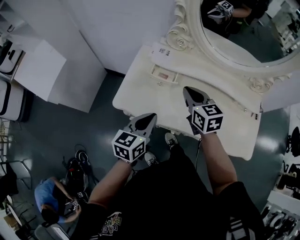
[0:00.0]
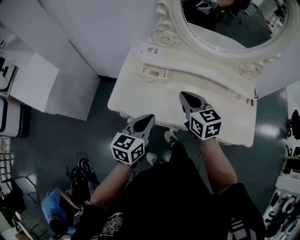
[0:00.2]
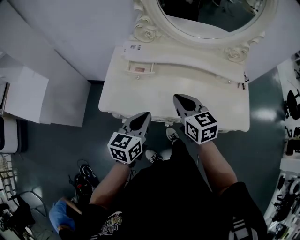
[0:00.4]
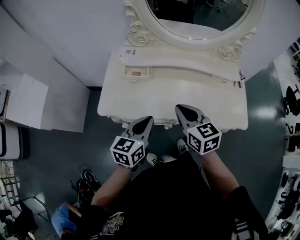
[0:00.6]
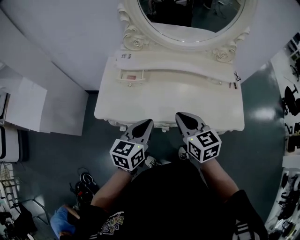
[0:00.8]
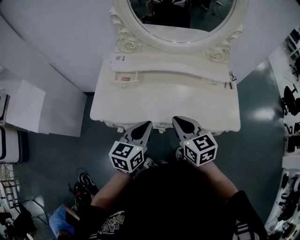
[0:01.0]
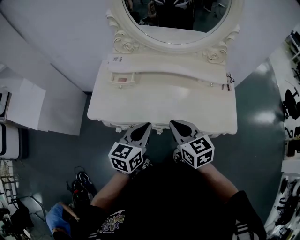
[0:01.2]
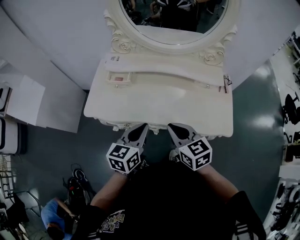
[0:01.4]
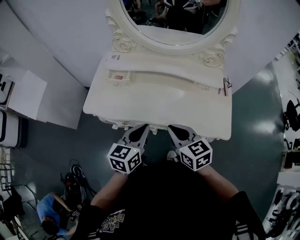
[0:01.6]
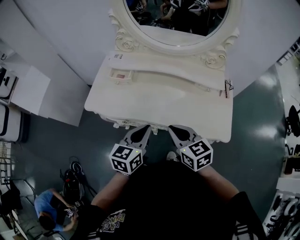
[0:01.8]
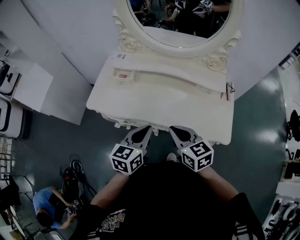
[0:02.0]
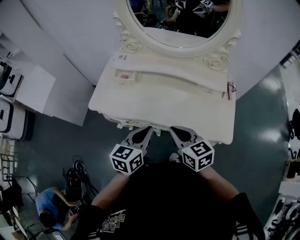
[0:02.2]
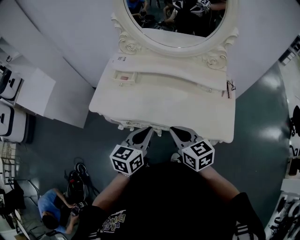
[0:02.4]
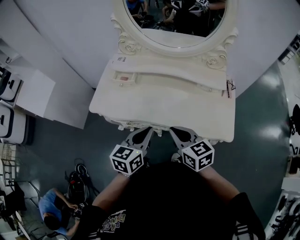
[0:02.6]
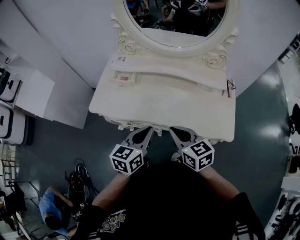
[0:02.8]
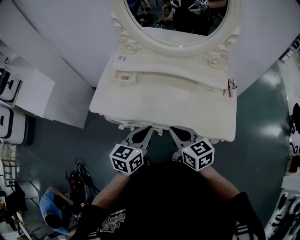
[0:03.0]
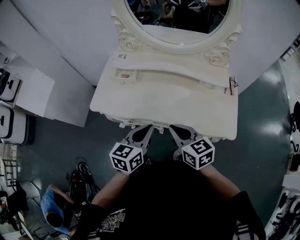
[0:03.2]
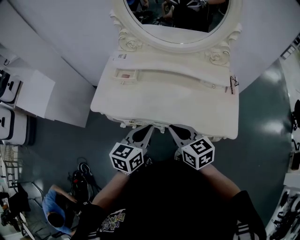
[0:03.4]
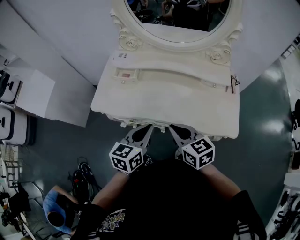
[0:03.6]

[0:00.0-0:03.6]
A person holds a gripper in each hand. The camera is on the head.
0.0 to 1.8 s: The left gripper is displaced to the right and backward by some 25 cm, while the right gripper moves backward and to the right, roughly 30 cm.
1.8 to 3.6 s: The grippers stay close to where they were, moving slightly.

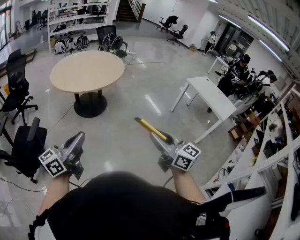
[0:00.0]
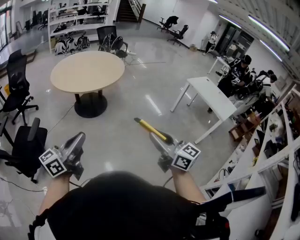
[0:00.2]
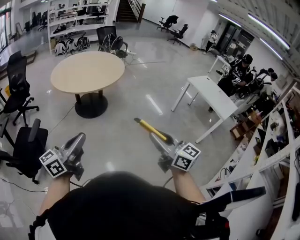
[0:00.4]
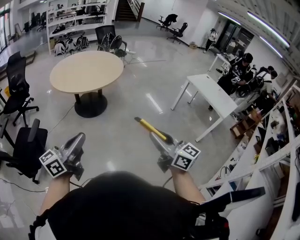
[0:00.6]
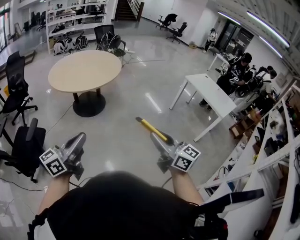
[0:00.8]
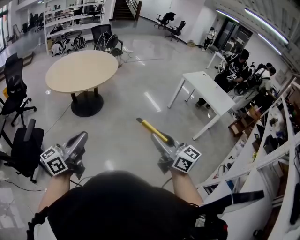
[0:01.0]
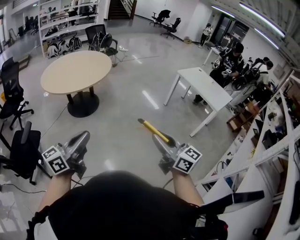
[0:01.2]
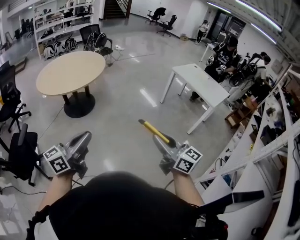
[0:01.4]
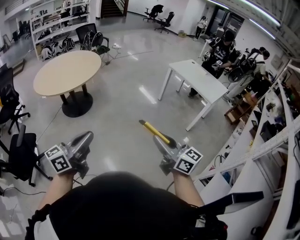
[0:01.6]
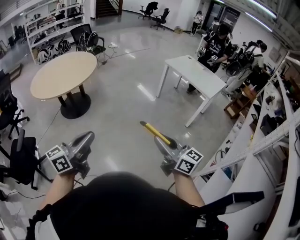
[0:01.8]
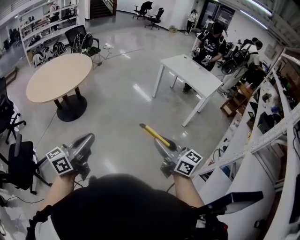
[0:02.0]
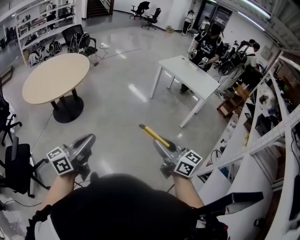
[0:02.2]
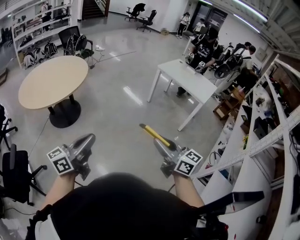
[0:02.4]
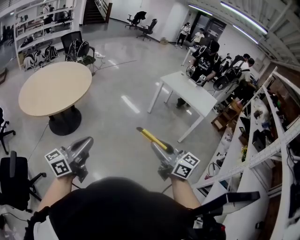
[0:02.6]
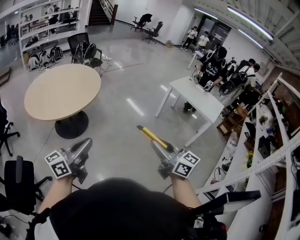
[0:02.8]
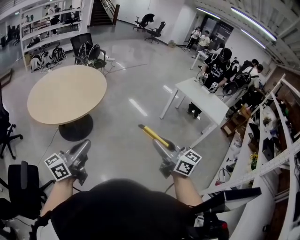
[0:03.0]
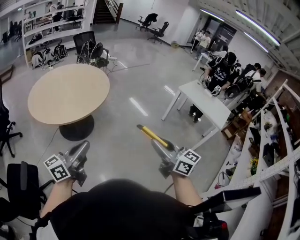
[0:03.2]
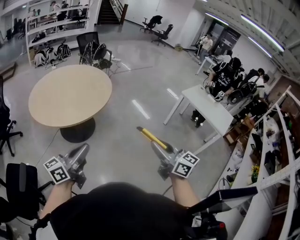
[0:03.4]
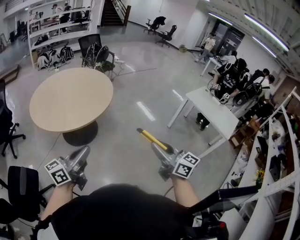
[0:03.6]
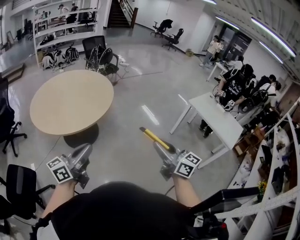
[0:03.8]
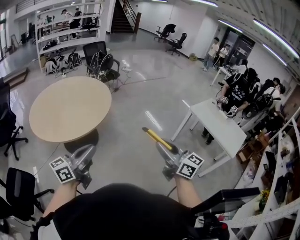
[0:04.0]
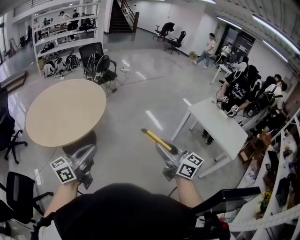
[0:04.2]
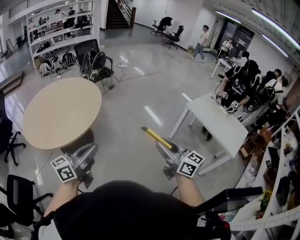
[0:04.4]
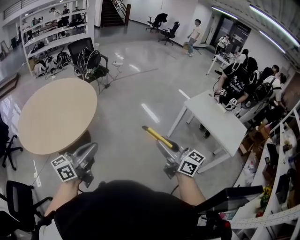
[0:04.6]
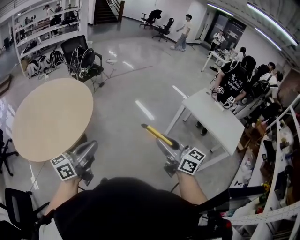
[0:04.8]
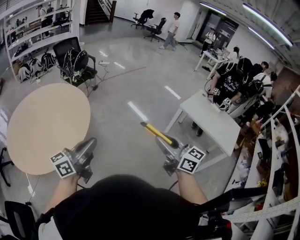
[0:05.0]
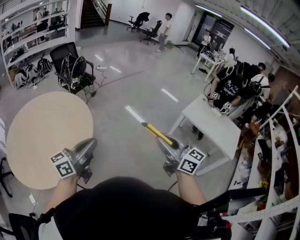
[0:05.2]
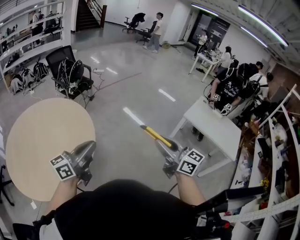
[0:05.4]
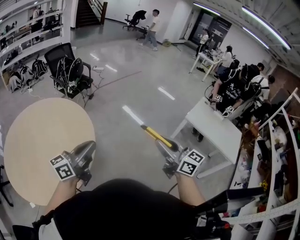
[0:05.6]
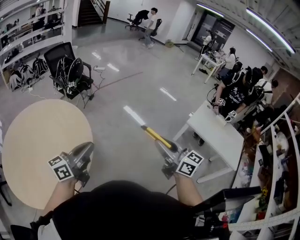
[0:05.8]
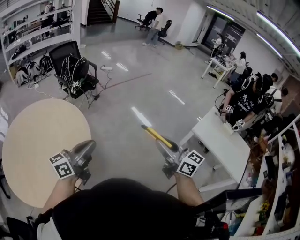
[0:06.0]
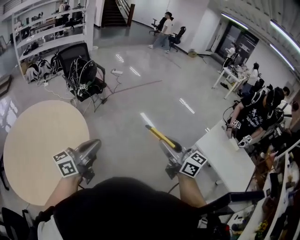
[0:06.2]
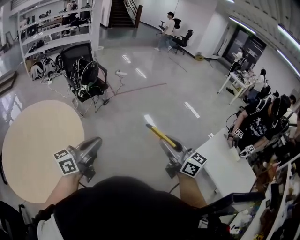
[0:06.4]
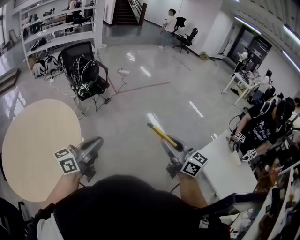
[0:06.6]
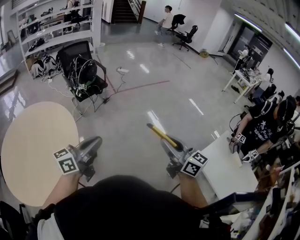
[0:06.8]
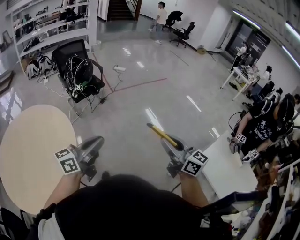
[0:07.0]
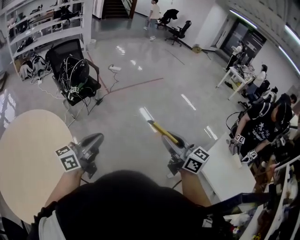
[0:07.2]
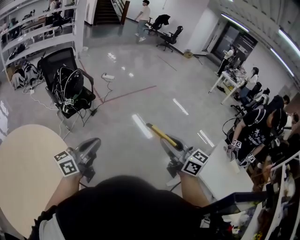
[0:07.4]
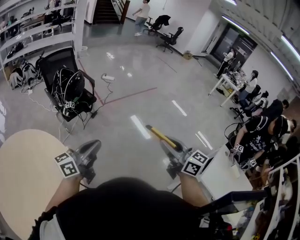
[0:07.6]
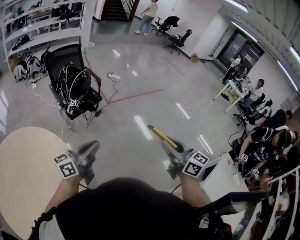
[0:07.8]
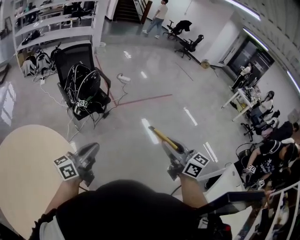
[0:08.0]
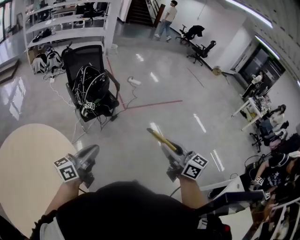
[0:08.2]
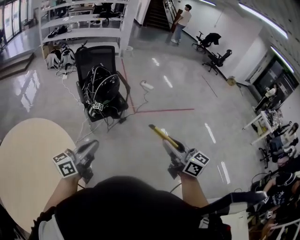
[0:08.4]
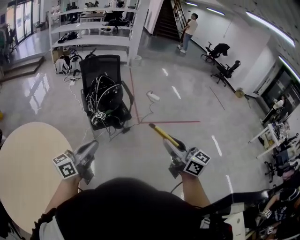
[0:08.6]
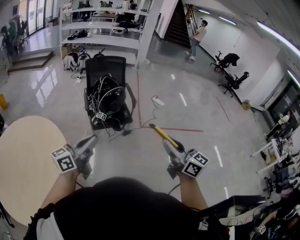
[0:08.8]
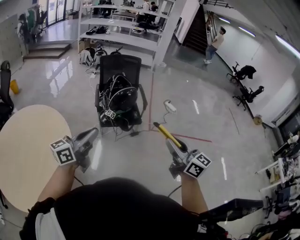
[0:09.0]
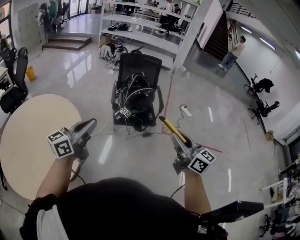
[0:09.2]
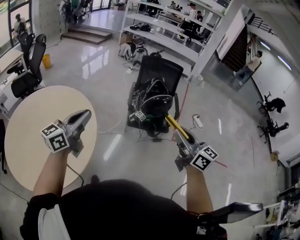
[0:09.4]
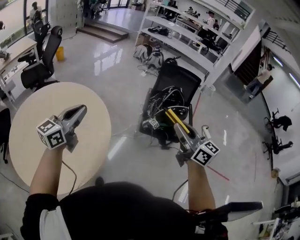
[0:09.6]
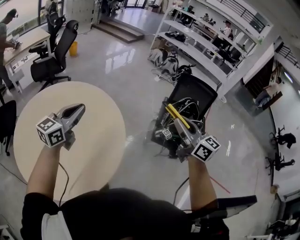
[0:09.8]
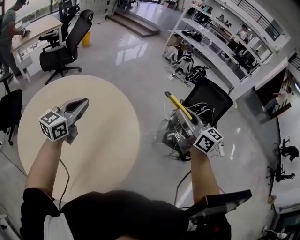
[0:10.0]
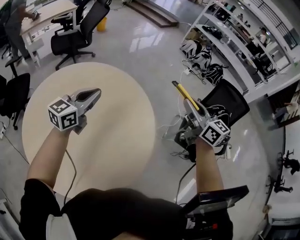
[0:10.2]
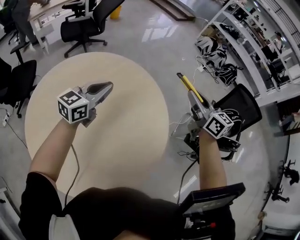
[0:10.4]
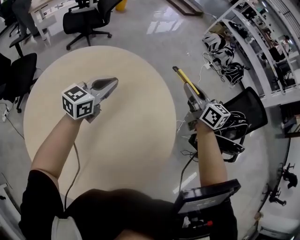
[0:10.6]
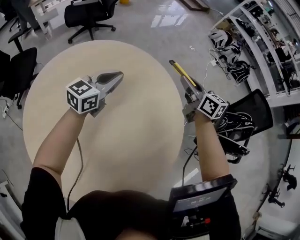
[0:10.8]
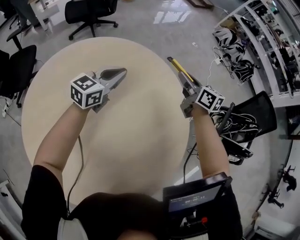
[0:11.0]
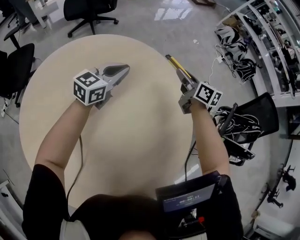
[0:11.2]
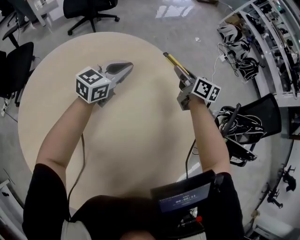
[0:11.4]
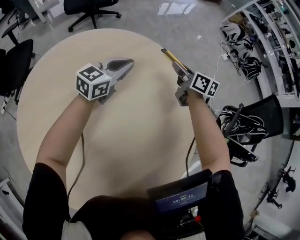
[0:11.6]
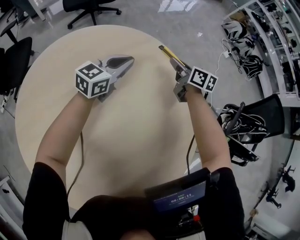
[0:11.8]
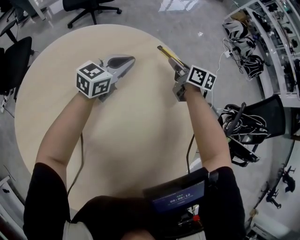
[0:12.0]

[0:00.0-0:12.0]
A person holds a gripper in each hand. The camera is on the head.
0.0 to 1.6 s: The grippers both shift to the right by some 25 cm.
1.6 to 3.0 s: Both grippers move to the left and forward, some 35 cm.
3.0 to 4.4 s: The two grippers go approximately 35 cm forward and to the right.
4.4 to 6.0 s: The pair of grippers is taken forward, roughly 40 cm.
6.0 to 7.6 s: The two grippers travel together, forward, roughly 40 cm.
7.6 to 9.0 s: The right gripper changes place by some 40 cm, and turns by some 40 degrees; the left gripper ends up some 20 cm from where it was, and swivels approximately 40 degrees.
9.0 to 10.4 s: The two grippers travel together, approximately 70 cm. The right gripper rotates about 40 degrees. The left gripper turns by roughly 50 degrees.
10.4 to 12.0 s: The left gripper moves downward and forward, approximately 30 cm, while the right gripper goes some 50 cm downward, forward and to the left, and rotates roughly 30 degrees.

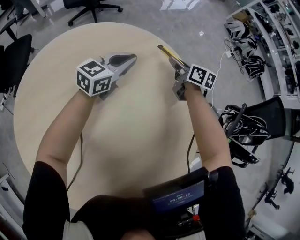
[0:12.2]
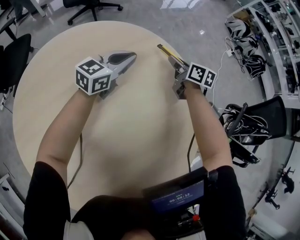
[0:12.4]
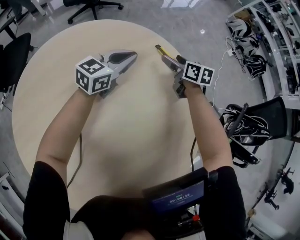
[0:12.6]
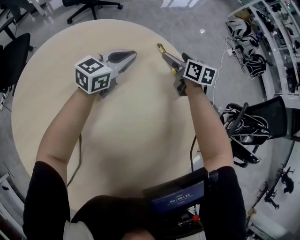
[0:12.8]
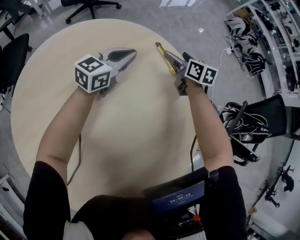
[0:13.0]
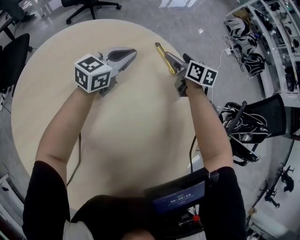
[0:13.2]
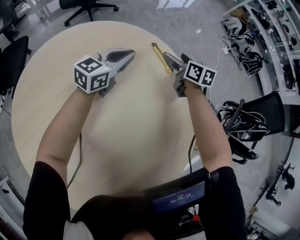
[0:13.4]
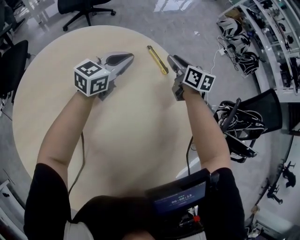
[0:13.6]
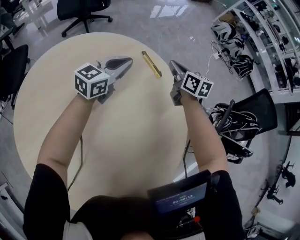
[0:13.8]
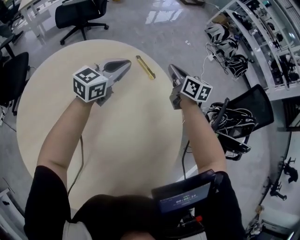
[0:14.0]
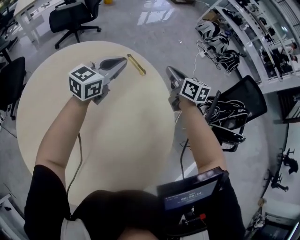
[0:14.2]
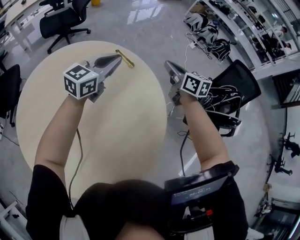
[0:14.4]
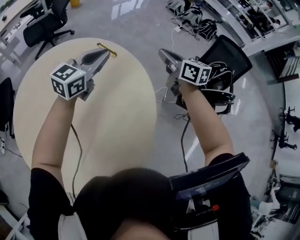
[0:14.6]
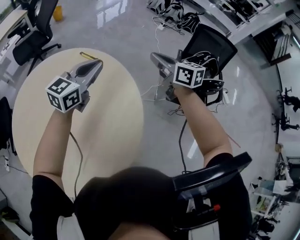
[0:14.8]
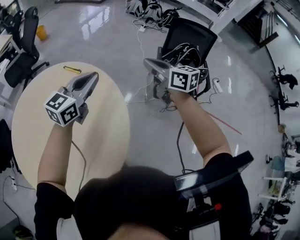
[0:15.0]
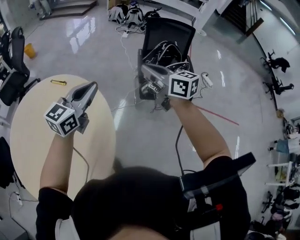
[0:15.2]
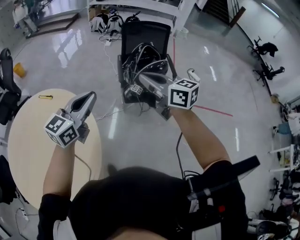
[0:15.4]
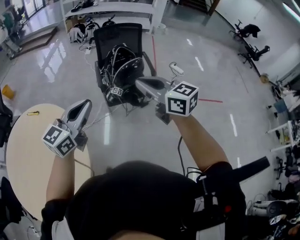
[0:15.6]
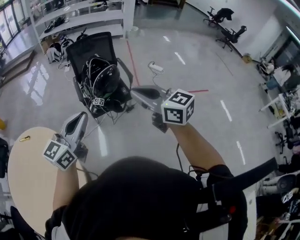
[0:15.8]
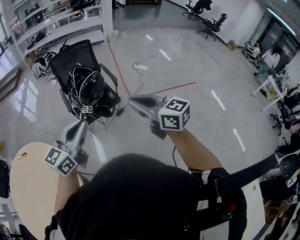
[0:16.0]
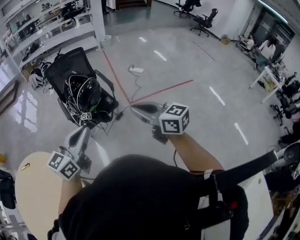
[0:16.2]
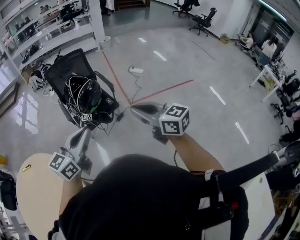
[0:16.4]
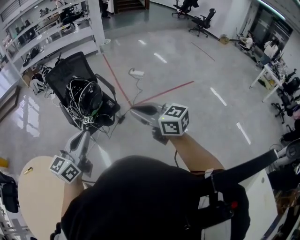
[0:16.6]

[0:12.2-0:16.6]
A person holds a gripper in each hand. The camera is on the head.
12.2 to 13.6 s: The right gripper moves about 5 cm, and opens, then closes once more.
13.6 to 15.2 s: The two grippers travel together, to the right and backward, roughly 50 cm. The two grippers go about 30 cm upward. The left gripper rotates approximately 30 degrees. The right gripper swivels roughly 20 degrees.
15.2 to 16.6 s: The left gripper moves about 40 cm, and turns by roughly 30 degrees. The right gripper shifts by some 50 cm, and swivels approximately 30 degrees.

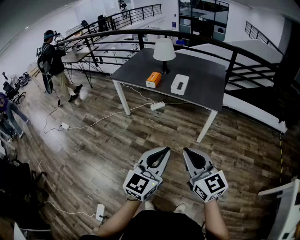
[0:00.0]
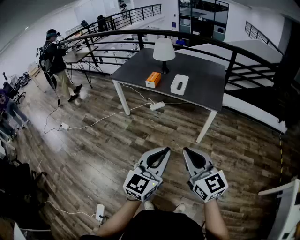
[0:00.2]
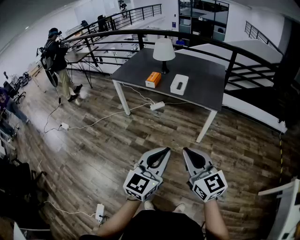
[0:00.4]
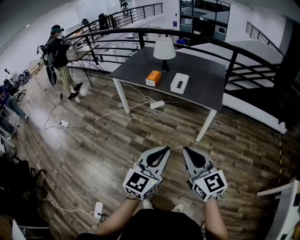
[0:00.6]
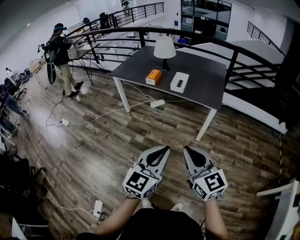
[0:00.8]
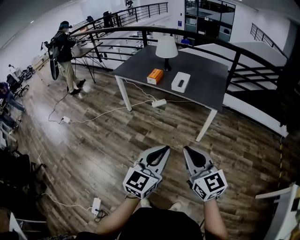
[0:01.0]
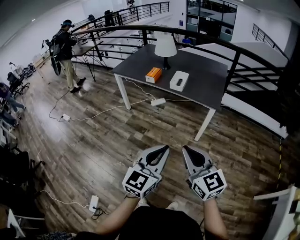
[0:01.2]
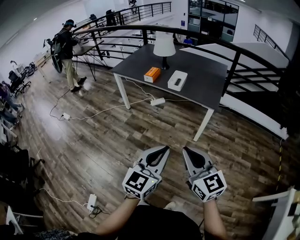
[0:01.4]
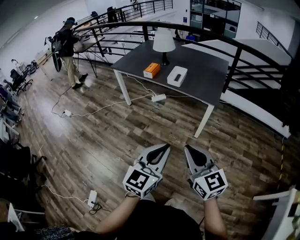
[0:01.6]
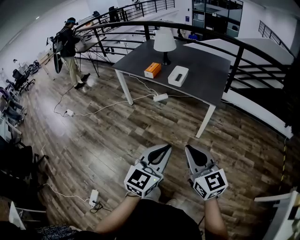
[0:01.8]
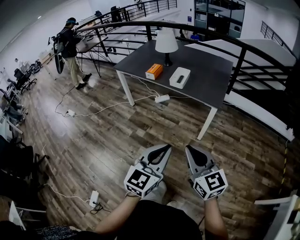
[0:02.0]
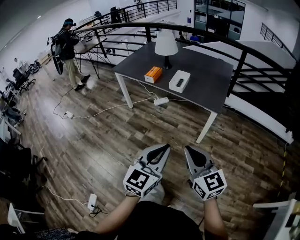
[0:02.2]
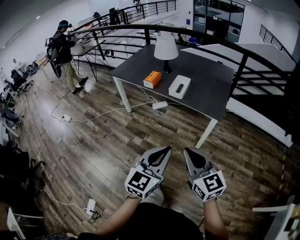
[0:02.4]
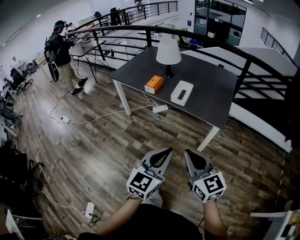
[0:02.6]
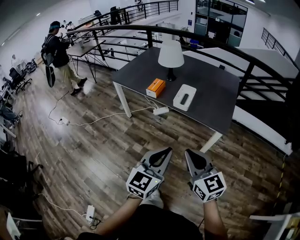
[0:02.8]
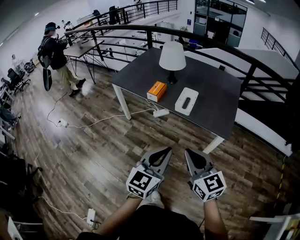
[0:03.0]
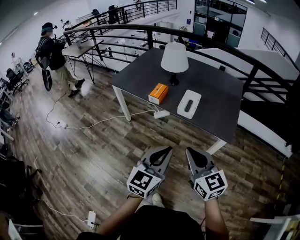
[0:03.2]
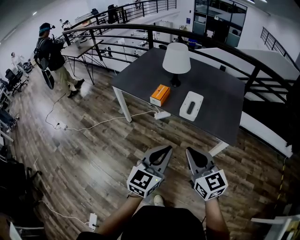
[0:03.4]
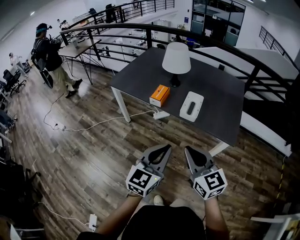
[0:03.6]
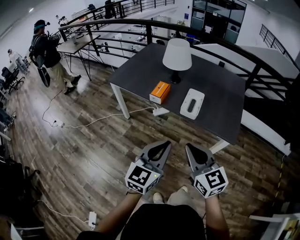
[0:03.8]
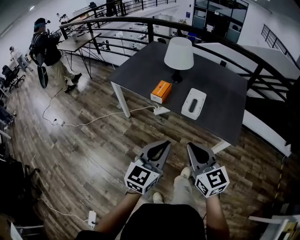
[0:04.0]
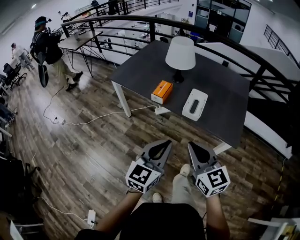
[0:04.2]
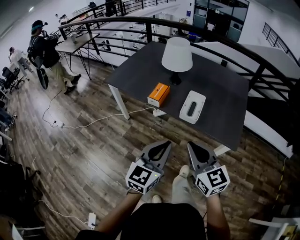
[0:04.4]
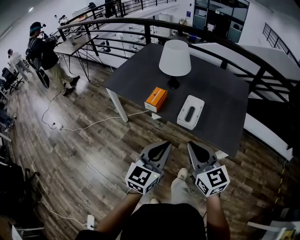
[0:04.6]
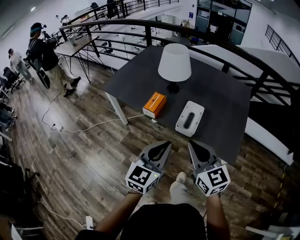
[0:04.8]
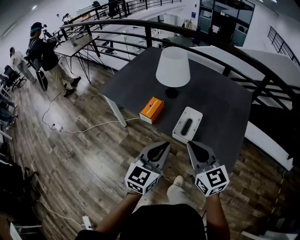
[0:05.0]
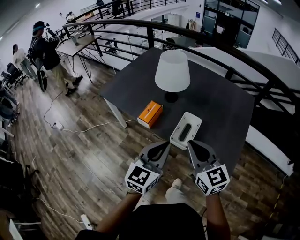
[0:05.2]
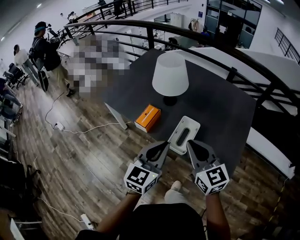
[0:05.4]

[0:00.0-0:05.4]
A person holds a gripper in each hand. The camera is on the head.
0.0 to 1.4 s: Both grippers travel together to the right, approximately 5 cm.
1.4 to 2.8 s: Both grippers move forward, about 20 cm.
2.8 to 4.0 s: Both grippers move forward and to the left, some 15 cm.
4.0 to 5.4 s: Both grippers move forward and to the right, roughly 25 cm.
